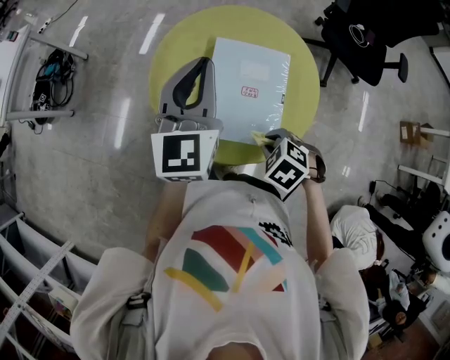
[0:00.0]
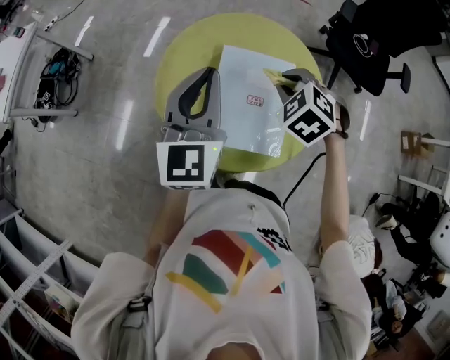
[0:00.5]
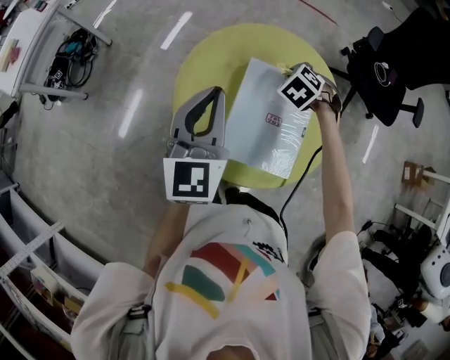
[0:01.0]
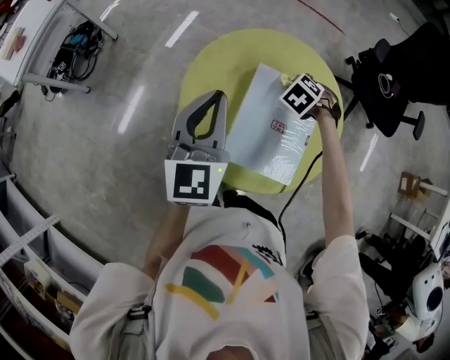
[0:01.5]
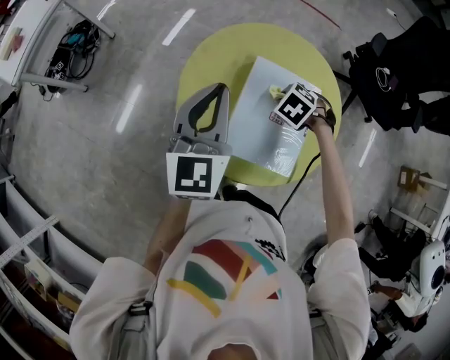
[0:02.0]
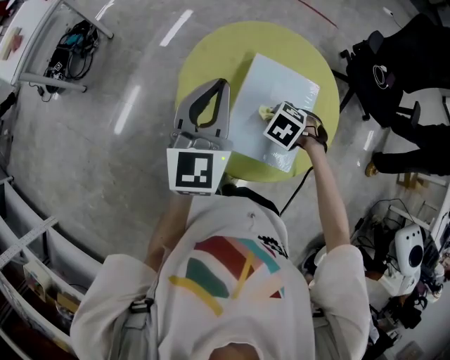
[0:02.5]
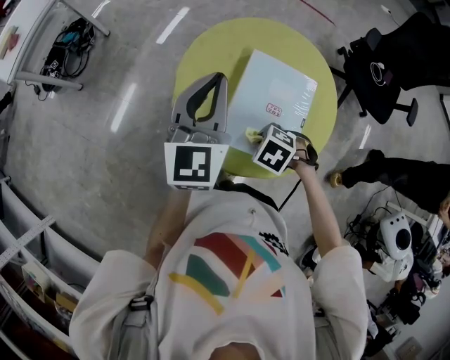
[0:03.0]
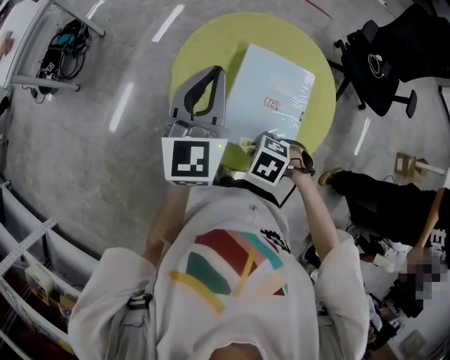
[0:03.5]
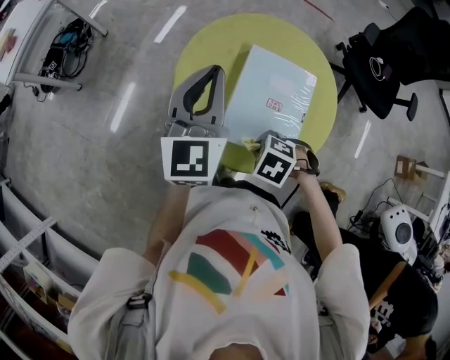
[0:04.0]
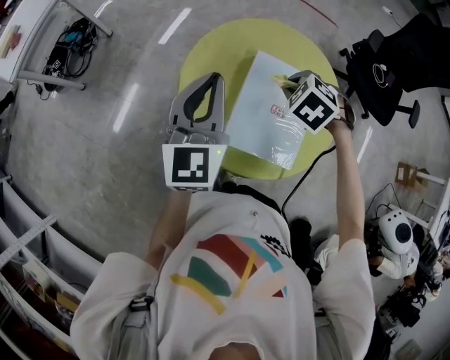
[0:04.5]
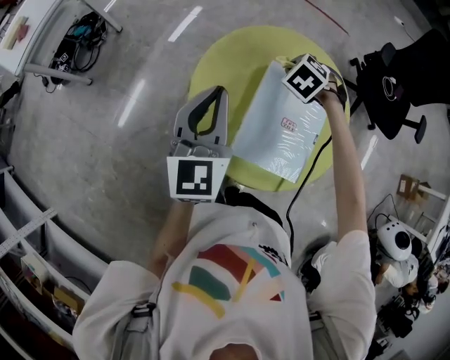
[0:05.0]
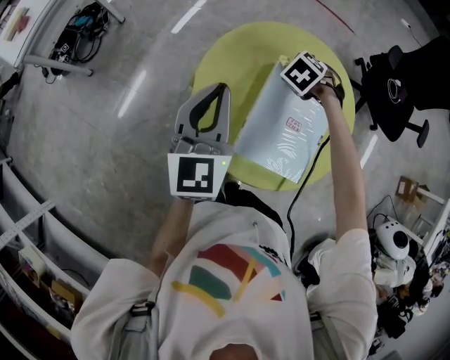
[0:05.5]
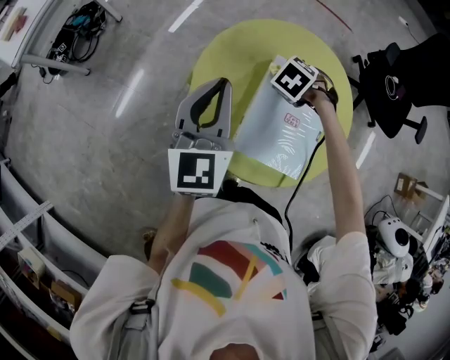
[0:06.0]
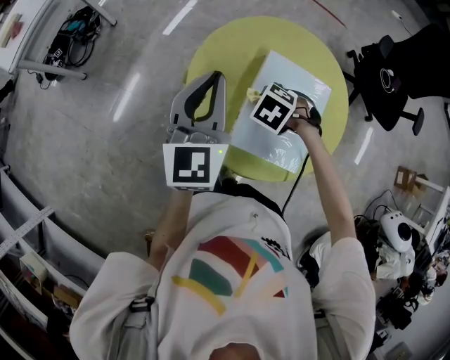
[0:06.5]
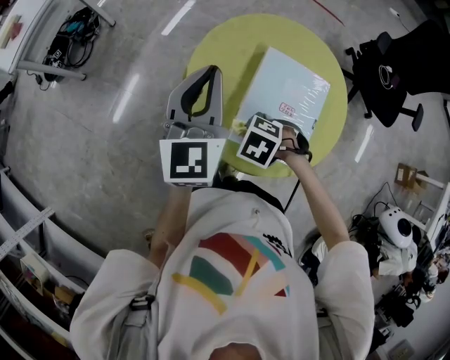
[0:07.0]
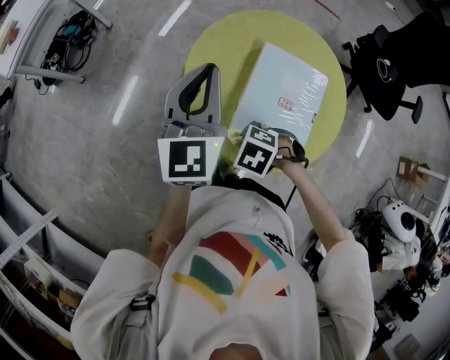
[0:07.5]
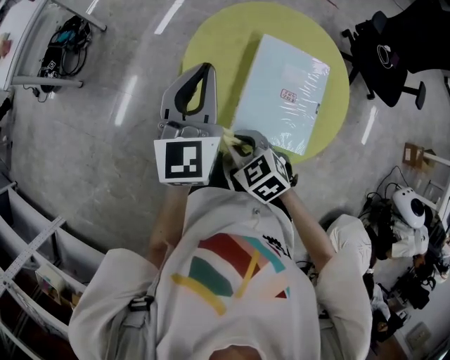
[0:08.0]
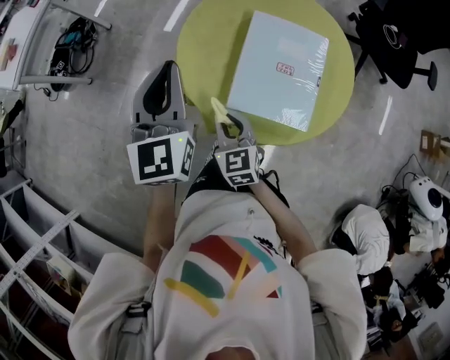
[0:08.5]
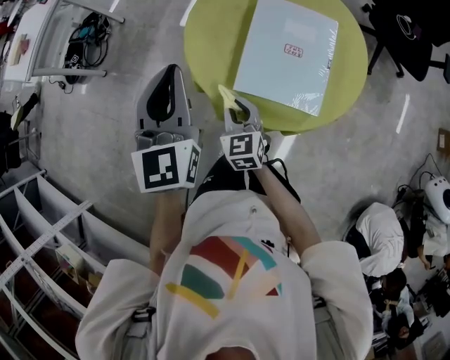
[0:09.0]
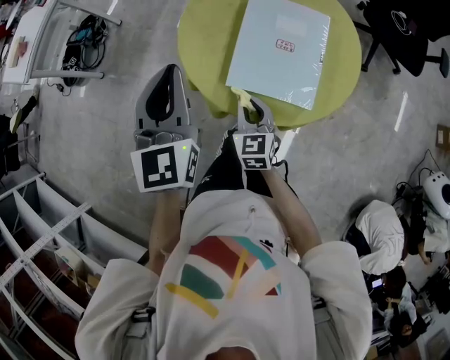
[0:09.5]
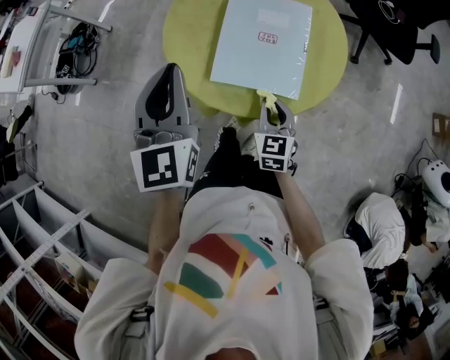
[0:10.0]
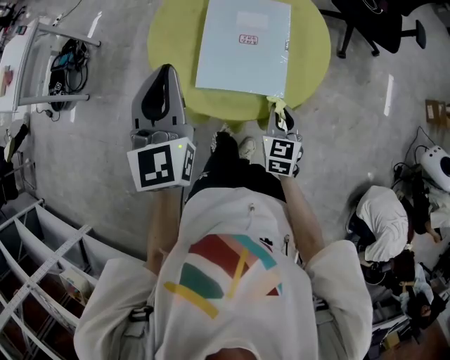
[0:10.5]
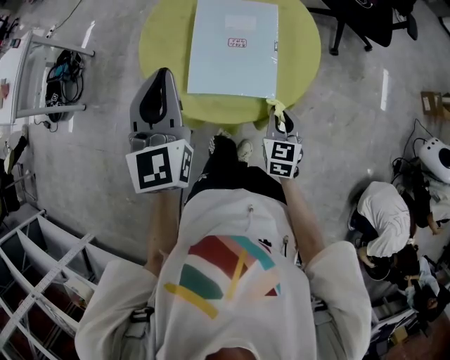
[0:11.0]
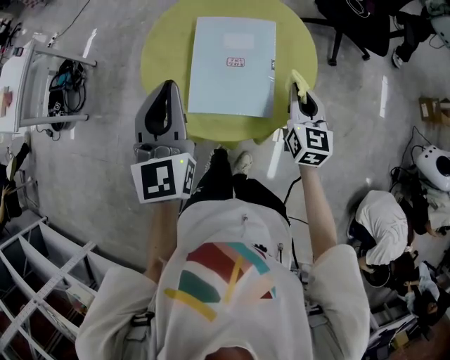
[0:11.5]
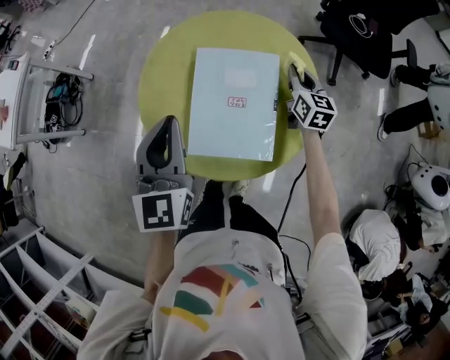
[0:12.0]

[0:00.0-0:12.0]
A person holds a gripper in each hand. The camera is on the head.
0:00.0 to 0:02.0: The left gripper moves about 5 cm; the right gripper travels upward and back again, about 10 cm each way.
0:02.0 to 0:04.0: The right gripper moves some 20 cm.
0:04.0 to 0:06.0: The left gripper moves some 5 cm; the right gripper travels upward and back again, roughly 10 cm each way.
0:06.0 to 0:08.0: The right gripper ends up about 30 cm from where it was, and changes its angle by about 40 degrees.
0:08.0 to 0:10.0: The right gripper moves to the right and downward, approximately 20 cm, and changes its angle by approximately 50 degrees, while the left gripper is displaced backward by roughly 15 cm.
0:10.0 to 0:12.0: The right gripper is displaced forward and to the right by some 30 cm, while the left gripper travels forward by roughly 10 cm.

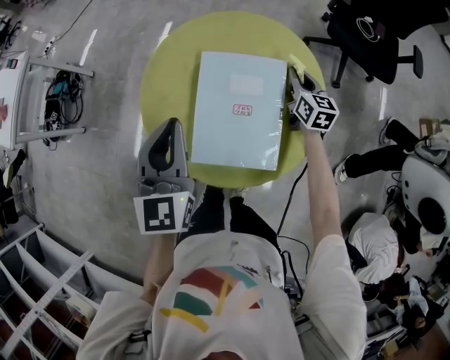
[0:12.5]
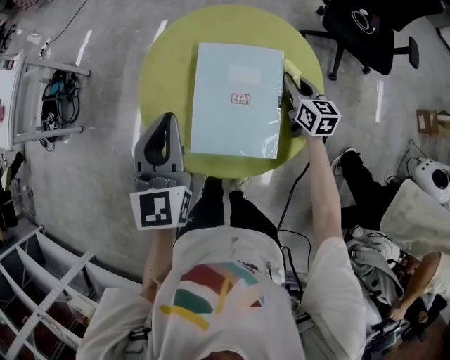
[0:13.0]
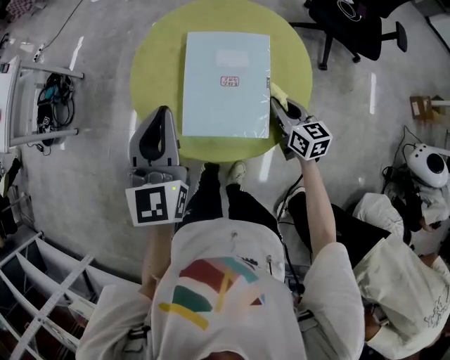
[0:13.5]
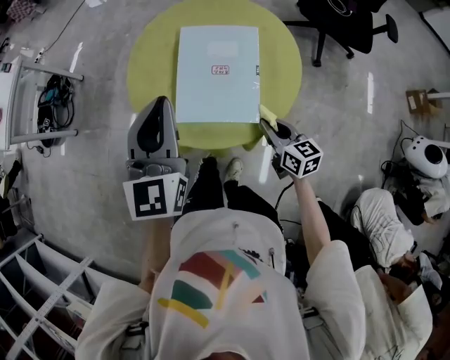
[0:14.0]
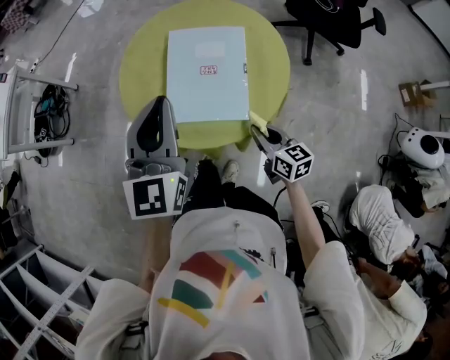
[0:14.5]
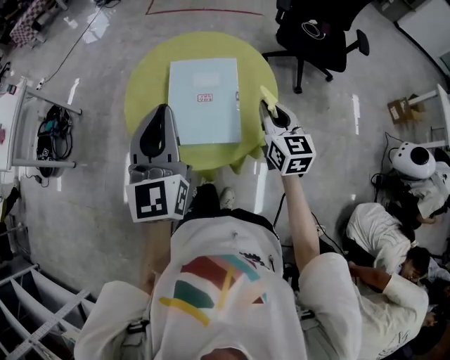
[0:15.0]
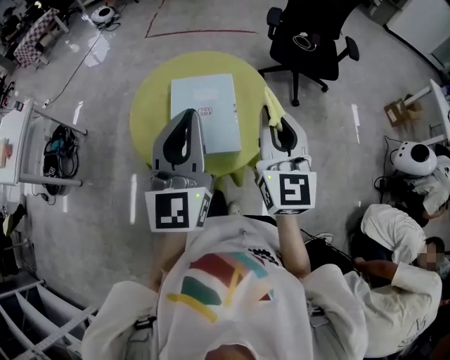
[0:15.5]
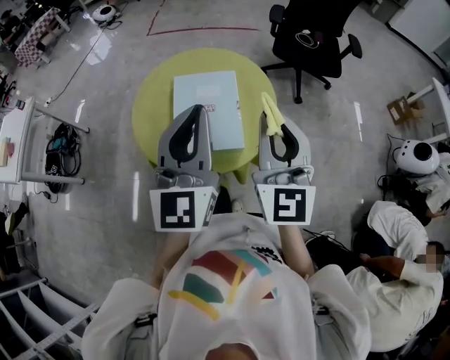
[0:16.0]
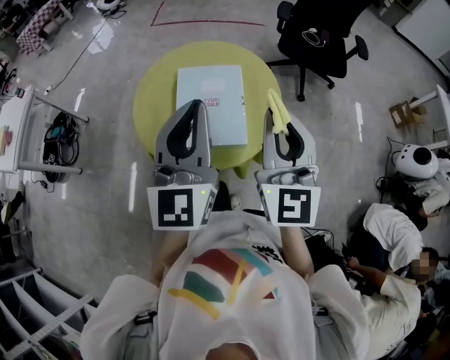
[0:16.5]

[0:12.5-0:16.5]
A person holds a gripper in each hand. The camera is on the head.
0:12.5 to 0:14.5: The left gripper travels backward by some 10 cm, while the right gripper moves backward, about 30 cm.
0:14.5 to 0:16.5: The right gripper shifts about 35 cm upward, and rotates roughly 60 degrees, while the left gripper is displaced upward and to the right by roughly 10 cm.

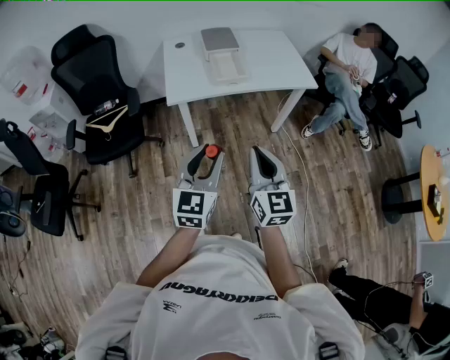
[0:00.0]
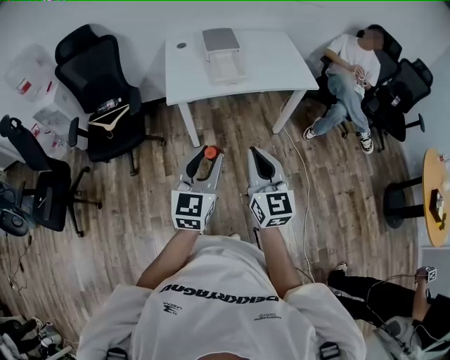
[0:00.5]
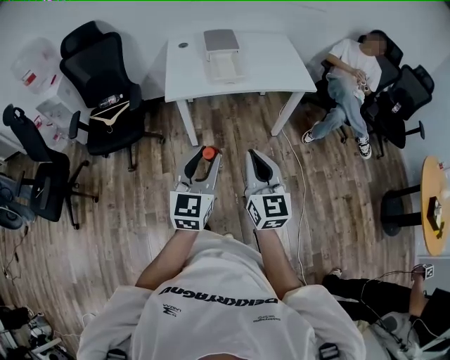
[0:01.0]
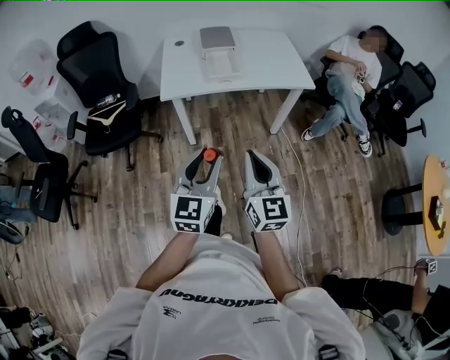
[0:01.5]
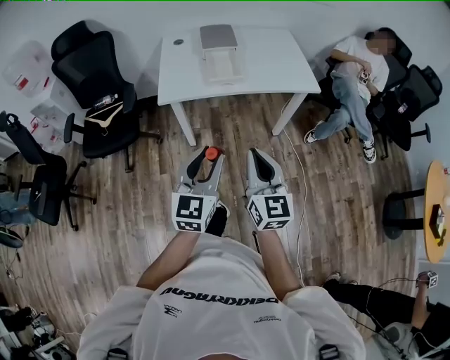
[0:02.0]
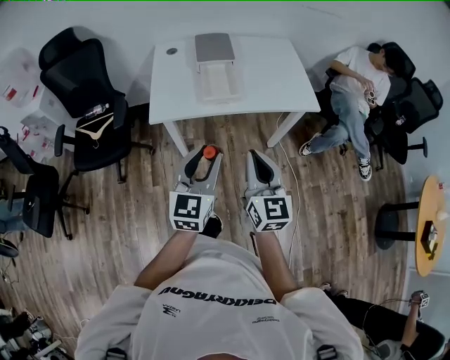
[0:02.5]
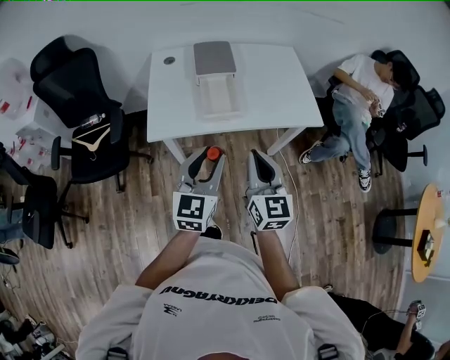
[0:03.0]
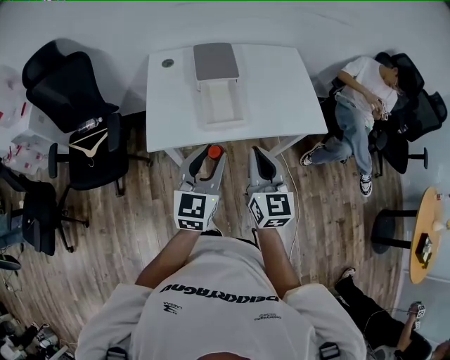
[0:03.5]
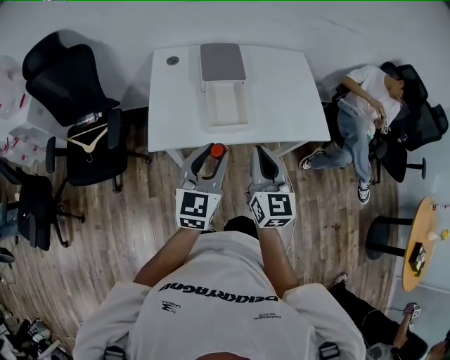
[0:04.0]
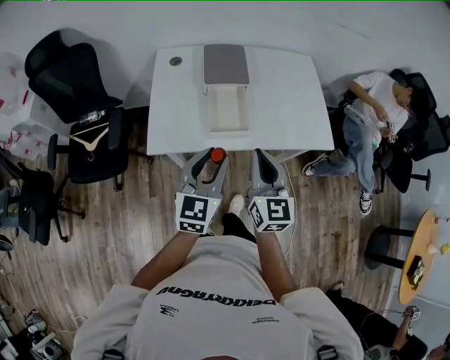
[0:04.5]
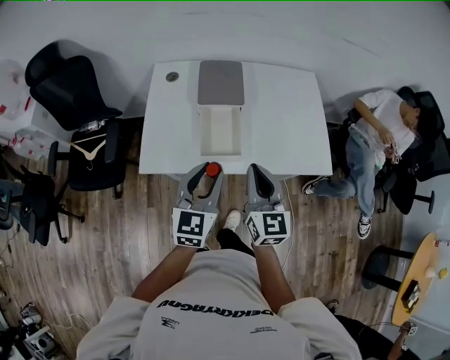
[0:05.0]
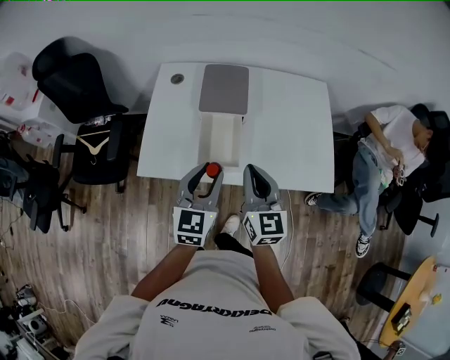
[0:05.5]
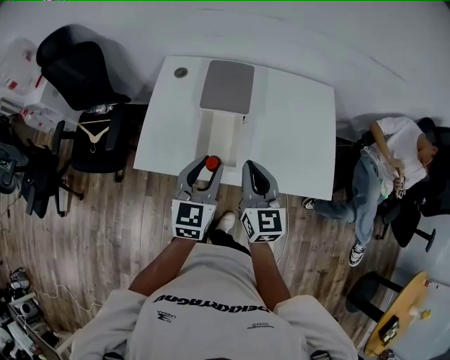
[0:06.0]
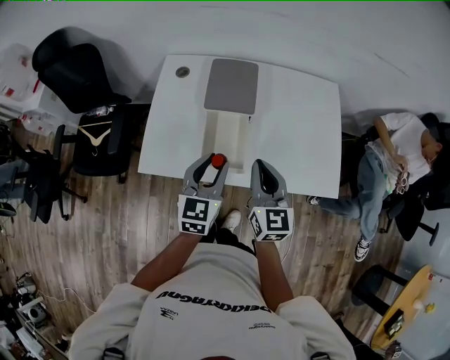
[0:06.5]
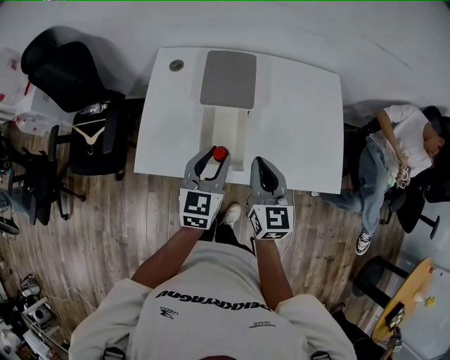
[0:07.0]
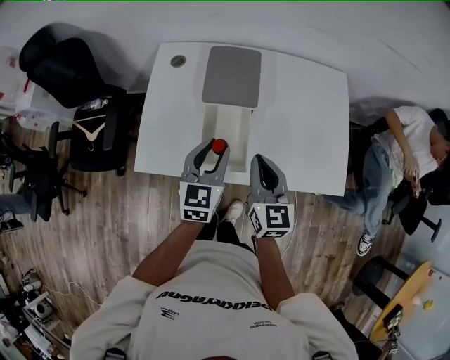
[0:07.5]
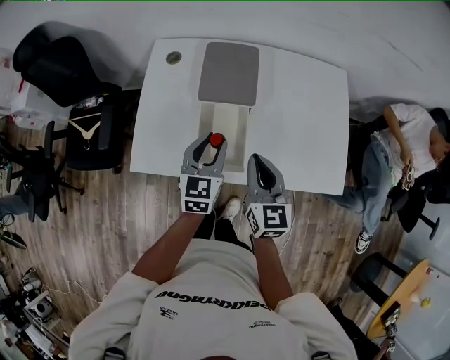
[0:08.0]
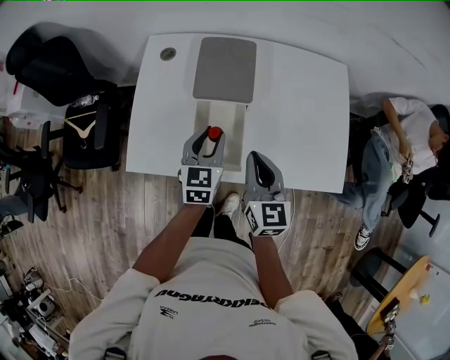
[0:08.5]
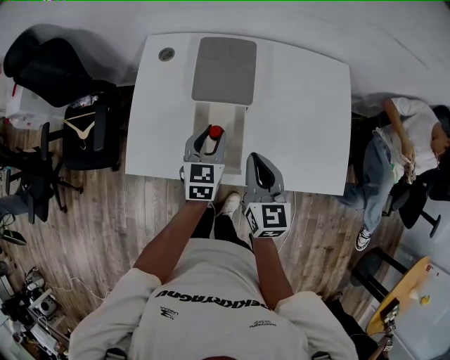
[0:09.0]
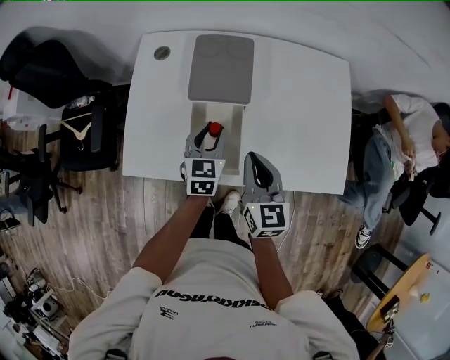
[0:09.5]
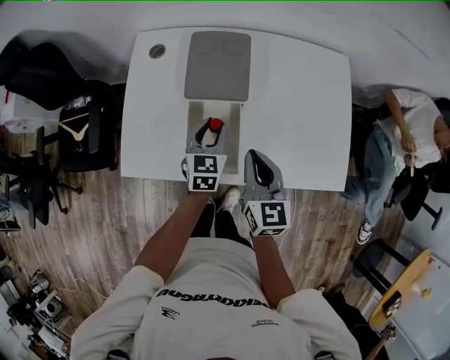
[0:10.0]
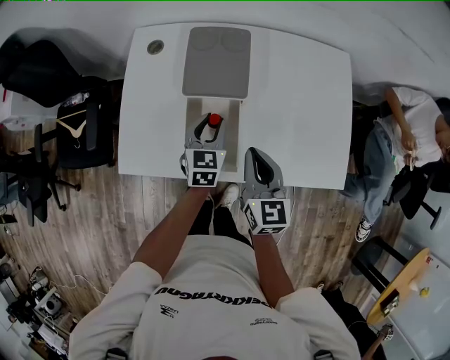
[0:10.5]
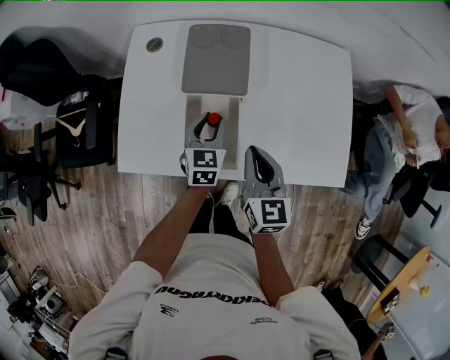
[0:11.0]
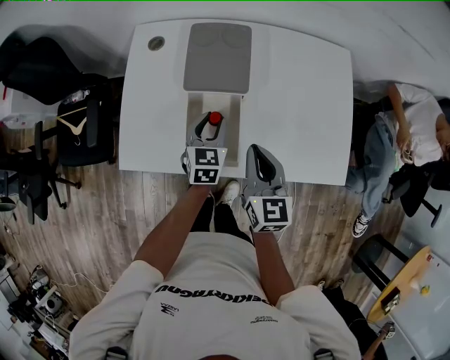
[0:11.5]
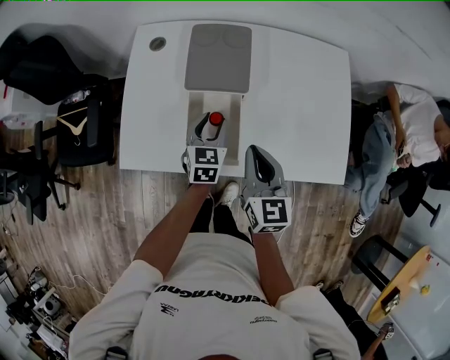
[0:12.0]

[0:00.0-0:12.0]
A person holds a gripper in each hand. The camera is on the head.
0:00.0 to 0:02.0: The two grippers go about 10 cm to the right.
0:02.0 to 0:04.0: Both grippers travel together forward, about 30 cm.
0:04.0 to 0:06.0: Both grippers move forward and to the right, roughly 20 cm.
0:06.0 to 0:08.0: The right gripper travels downward by about 5 cm; the left gripper heads forward and downward, covering roughly 15 cm.
0:08.0 to 0:10.0: The left gripper moves downward and forward, about 10 cm.
0:10.0 to 0:12.0: The grippers move only a little.
